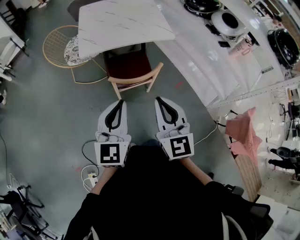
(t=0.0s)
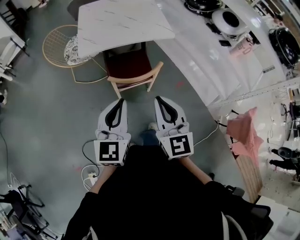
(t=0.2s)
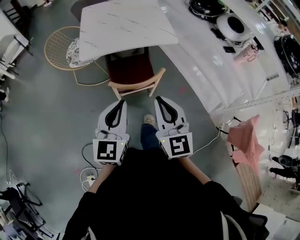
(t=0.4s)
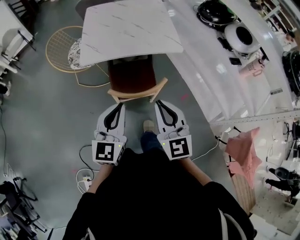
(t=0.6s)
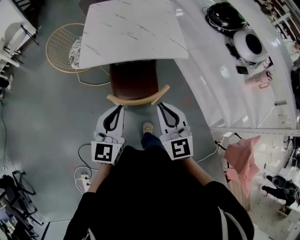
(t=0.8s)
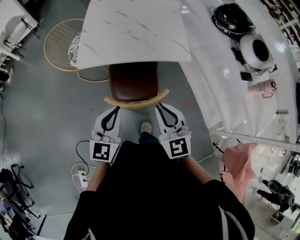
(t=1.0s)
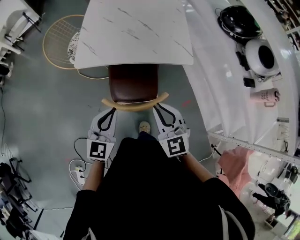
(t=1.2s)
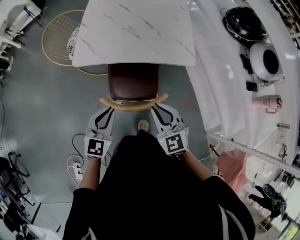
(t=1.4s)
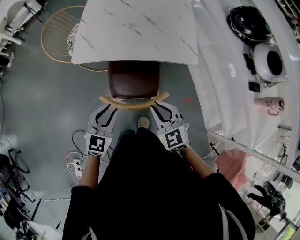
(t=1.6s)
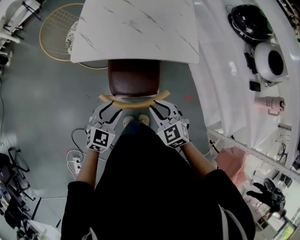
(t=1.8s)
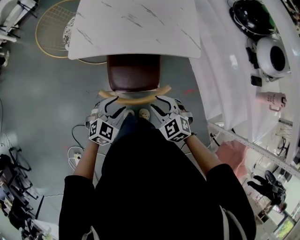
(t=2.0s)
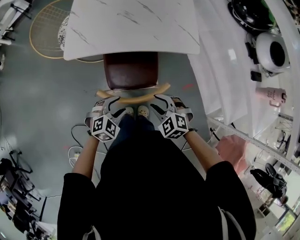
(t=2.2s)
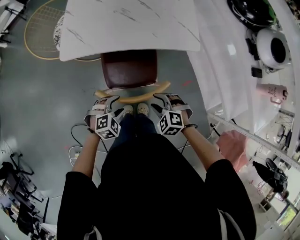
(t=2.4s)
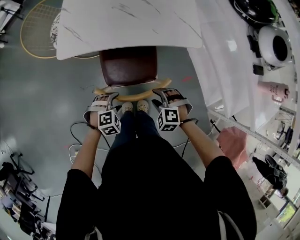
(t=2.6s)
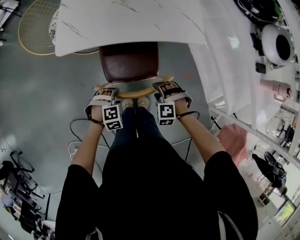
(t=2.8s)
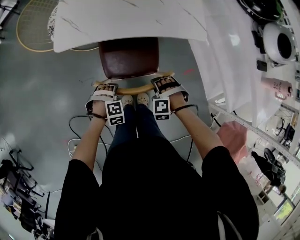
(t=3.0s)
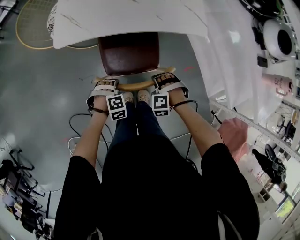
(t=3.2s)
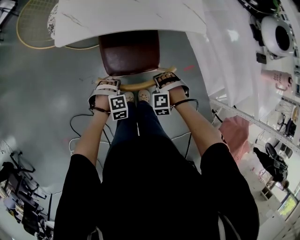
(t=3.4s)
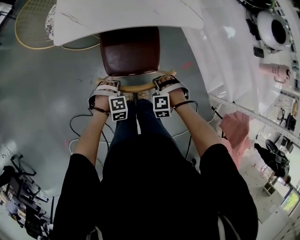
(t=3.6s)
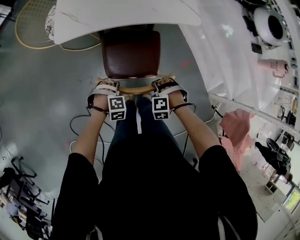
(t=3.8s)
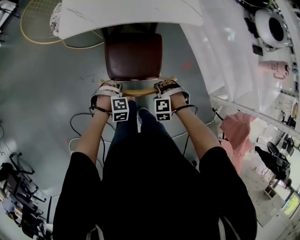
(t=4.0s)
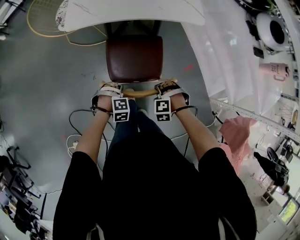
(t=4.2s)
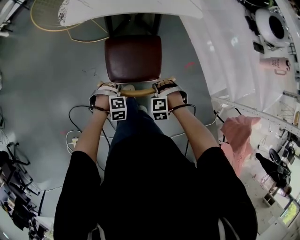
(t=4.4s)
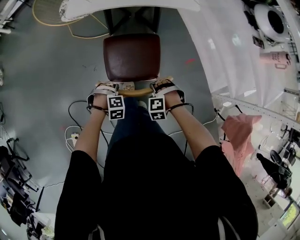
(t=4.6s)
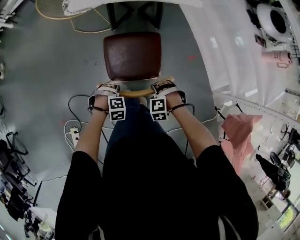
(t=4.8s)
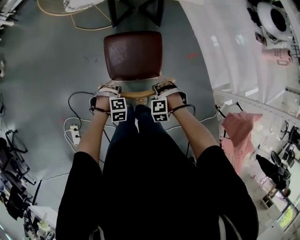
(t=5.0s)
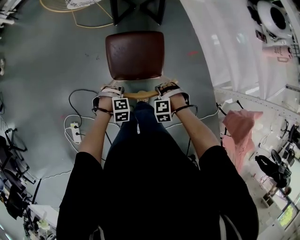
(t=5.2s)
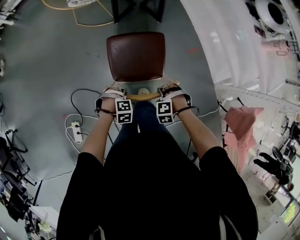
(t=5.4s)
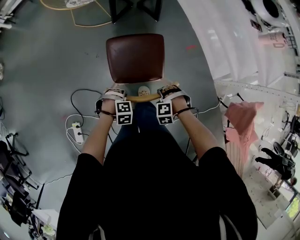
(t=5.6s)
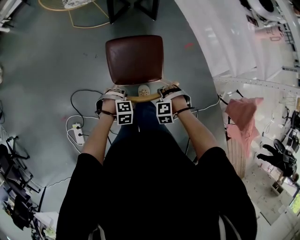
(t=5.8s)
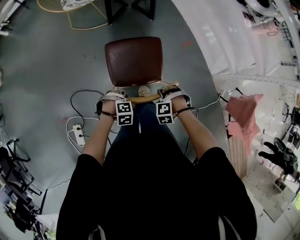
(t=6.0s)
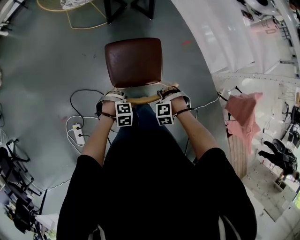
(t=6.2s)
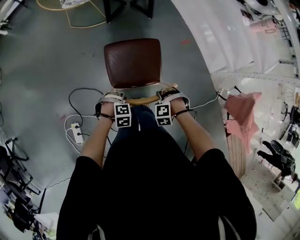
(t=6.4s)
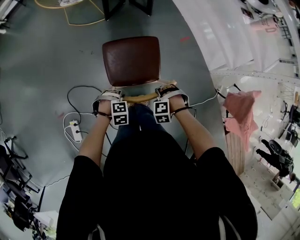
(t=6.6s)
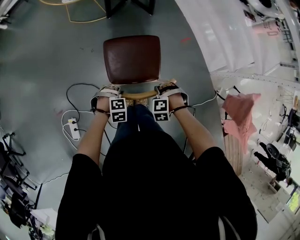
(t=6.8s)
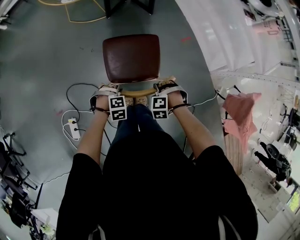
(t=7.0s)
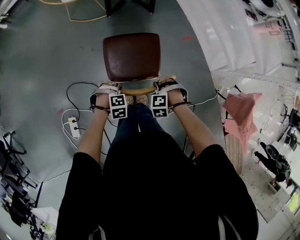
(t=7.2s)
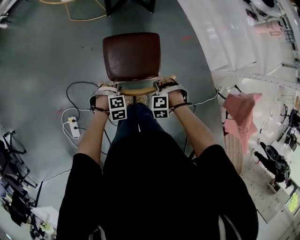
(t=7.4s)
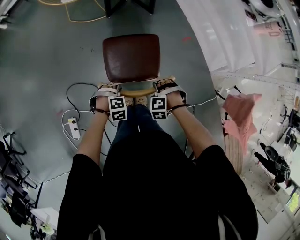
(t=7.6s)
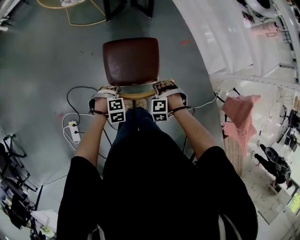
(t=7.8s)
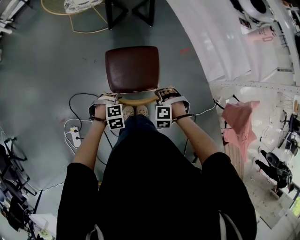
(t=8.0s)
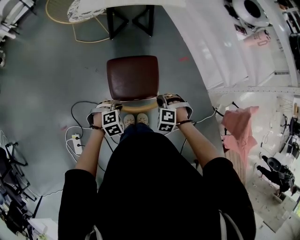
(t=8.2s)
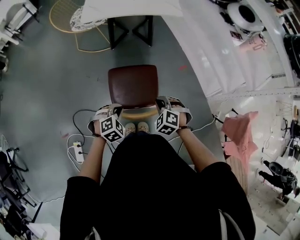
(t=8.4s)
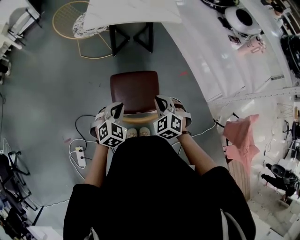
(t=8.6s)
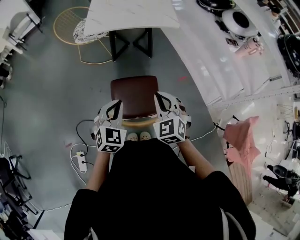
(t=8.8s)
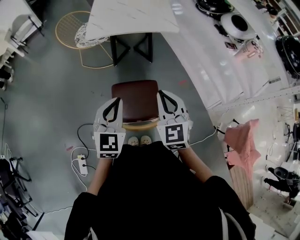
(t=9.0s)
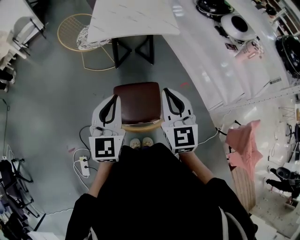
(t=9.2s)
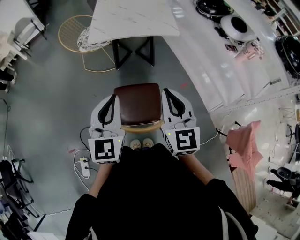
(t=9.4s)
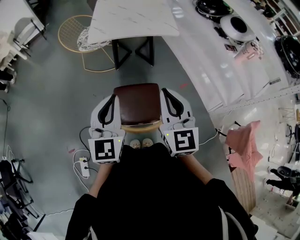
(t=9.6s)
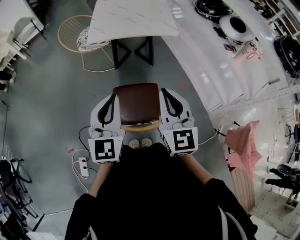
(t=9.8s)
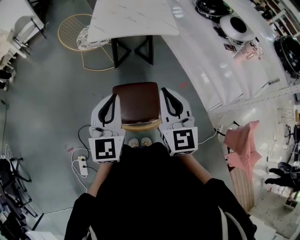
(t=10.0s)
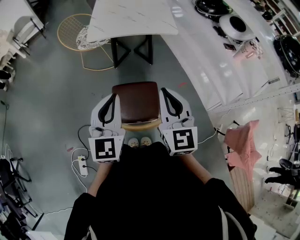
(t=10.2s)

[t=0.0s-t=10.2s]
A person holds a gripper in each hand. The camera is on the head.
t=0.0s to t=1.4s: The two grippers go roughly 30 cm forward and downward. The right gripper rotates about 30 degrees. Meanwhile the left gripper changes its angle by some 20 degrees.
t=1.4s to t=3.0s: Both grippers move downward, about 25 cm. The right gripper tilts its fingers some 50 degrees downward, and opens up; the left gripper points its fingers some 50 degrees further downward, and opens its fingers.
t=3.0s to t=4.4s: The left gripper changes place by approximately 15 cm. The right gripper changes place by approximately 15 cm.
t=4.4s to t=5.8s: The left gripper ends up approximately 25 cm from where it was; the right gripper moves some 25 cm.
t=5.8s to t=7.2s: The grippers stay close to where they were, moving slightly.
t=7.2s to t=8.8s: The grippers both shift upward by some 30 cm. The right gripper angles its fingers upward, by some 50 degrees, and closes up. The left gripper tilts its fingers about 50 degrees upward, and closes up.
t=8.8s to t=10.2s: Both grippers travel together upward, some 15 cm. The left gripper swivels some 30 degrees; the right gripper rotates approximately 30 degrees.

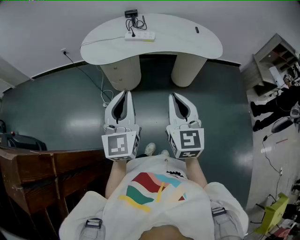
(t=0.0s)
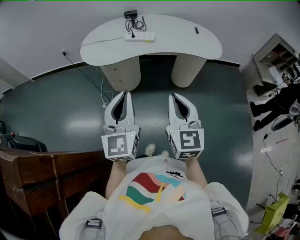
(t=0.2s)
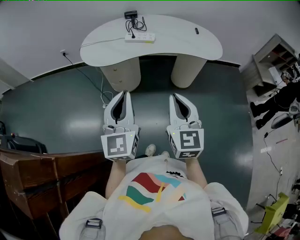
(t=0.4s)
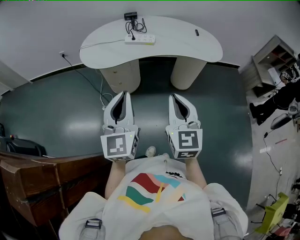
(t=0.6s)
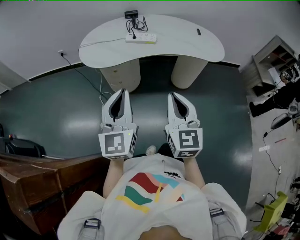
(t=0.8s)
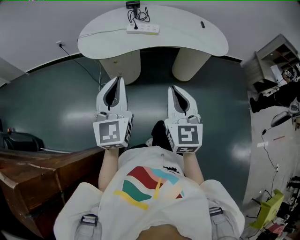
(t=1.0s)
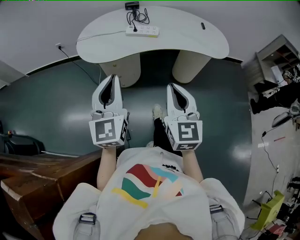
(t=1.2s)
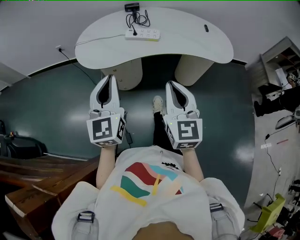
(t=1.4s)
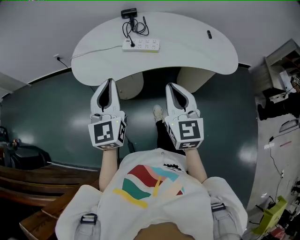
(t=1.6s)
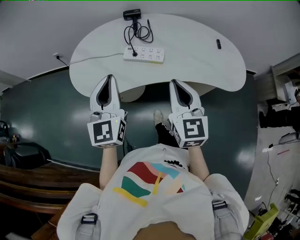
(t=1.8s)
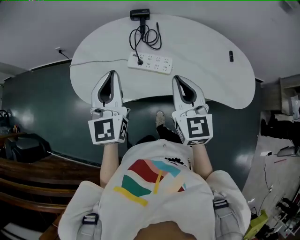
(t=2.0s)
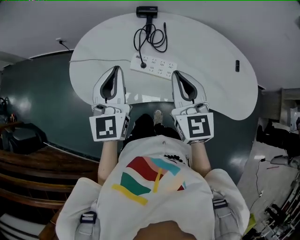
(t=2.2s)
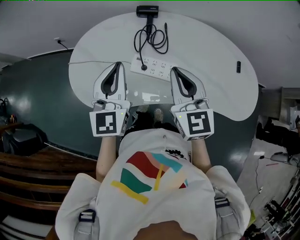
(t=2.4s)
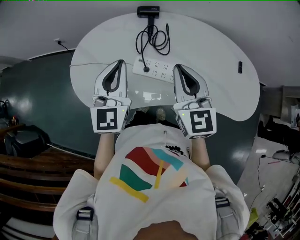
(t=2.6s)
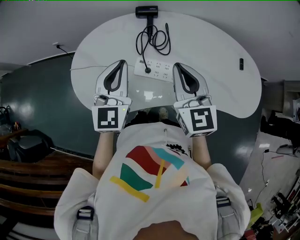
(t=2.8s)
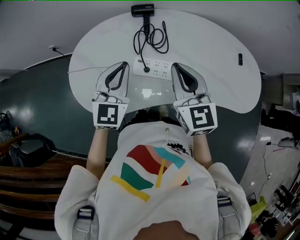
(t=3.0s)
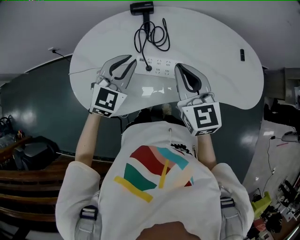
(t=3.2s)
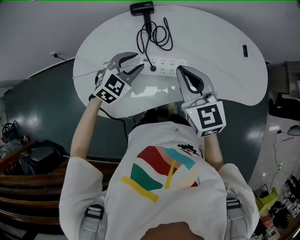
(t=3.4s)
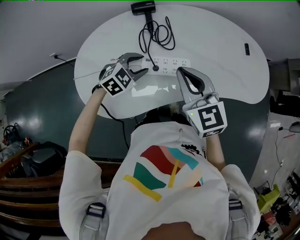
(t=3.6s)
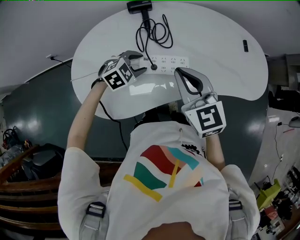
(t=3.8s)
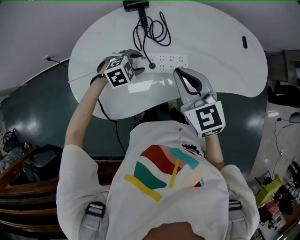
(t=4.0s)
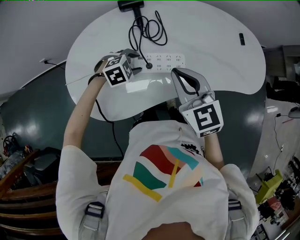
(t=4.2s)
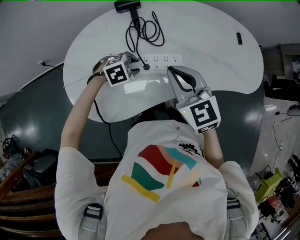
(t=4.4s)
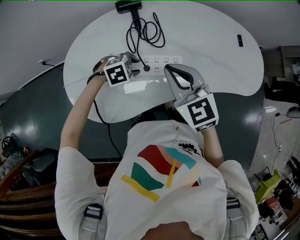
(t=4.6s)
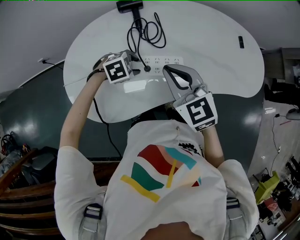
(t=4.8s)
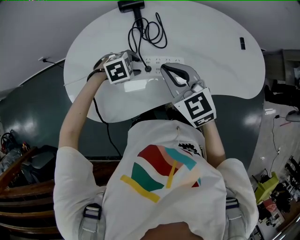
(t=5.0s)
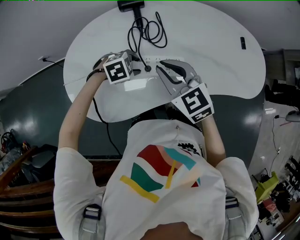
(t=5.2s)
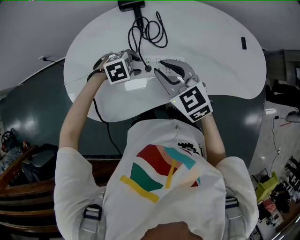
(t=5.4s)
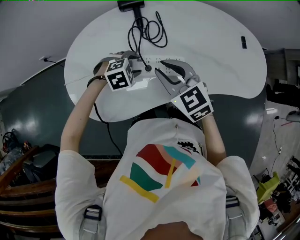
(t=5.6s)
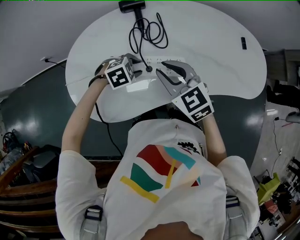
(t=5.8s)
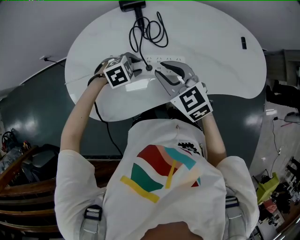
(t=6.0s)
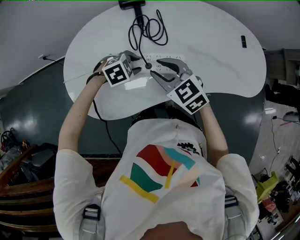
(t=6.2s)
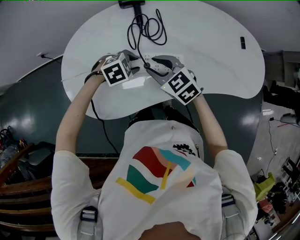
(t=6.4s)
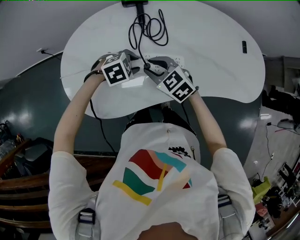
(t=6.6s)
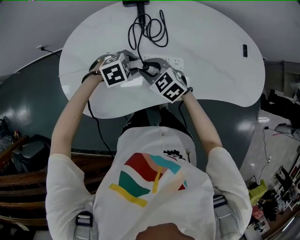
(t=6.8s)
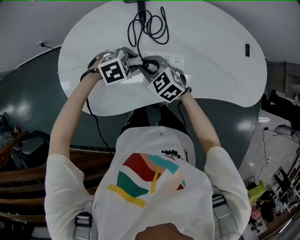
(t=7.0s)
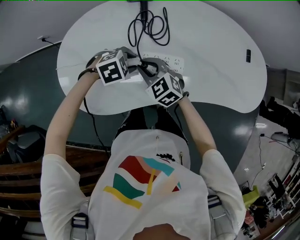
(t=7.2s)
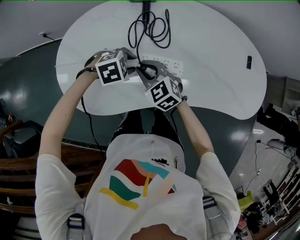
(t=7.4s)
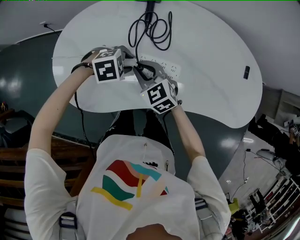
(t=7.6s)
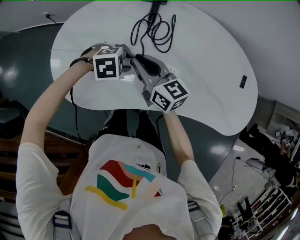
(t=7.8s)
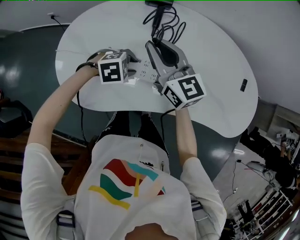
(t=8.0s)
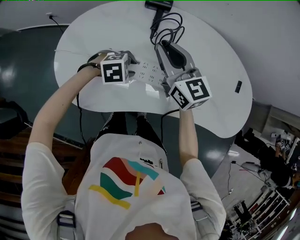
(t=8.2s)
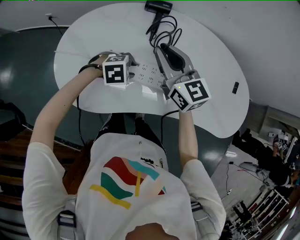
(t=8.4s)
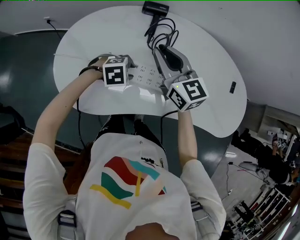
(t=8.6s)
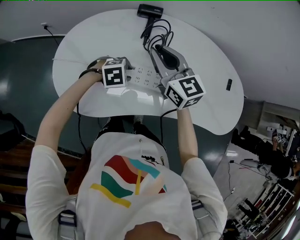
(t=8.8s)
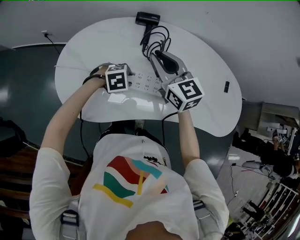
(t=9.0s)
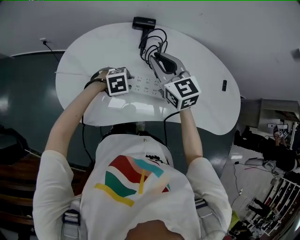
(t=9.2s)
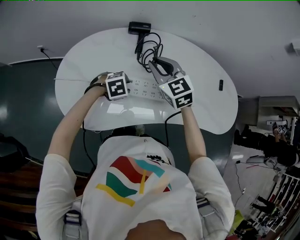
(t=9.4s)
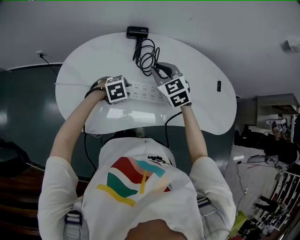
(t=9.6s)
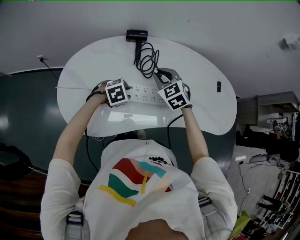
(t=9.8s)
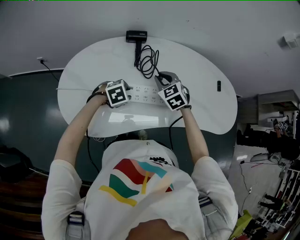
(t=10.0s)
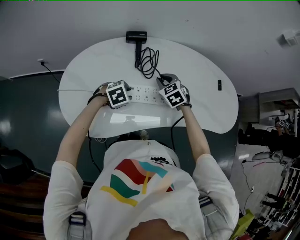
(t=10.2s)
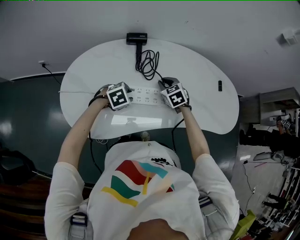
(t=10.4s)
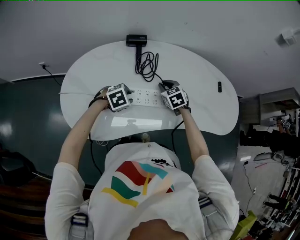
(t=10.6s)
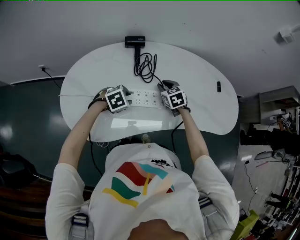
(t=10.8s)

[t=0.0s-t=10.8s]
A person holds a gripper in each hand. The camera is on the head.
t=0.0s to t=1.6s: Both grippers move forward, some 25 cm.
t=1.6s to t=3.0s: Both grippers travel together forward, roughly 30 cm. The left gripper swivels roughly 20 degrees.
t=3.0s to t=4.6s: The left gripper travels downward by approximately 20 cm, tilts its fingers approximately 50 degrees downward, and opens its fingers, while the right gripper moves about 5 cm.
t=4.6s to t=6.2s: The right gripper is displaced downward by roughly 10 cm, and opens.
t=6.2s to t=7.8s: The right gripper moves some 10 cm downward and comes back, changes its angle by approximately 20 degrees, and closes up.
t=7.8s to t=9.2s: The right gripper moves upward, about 10 cm.
t=9.2s to t=10.8s: The right gripper goes roughly 20 cm downward and to the right, and swivels some 30 degrees.

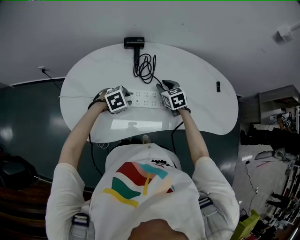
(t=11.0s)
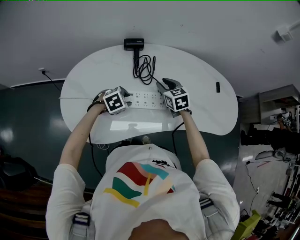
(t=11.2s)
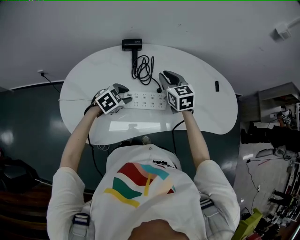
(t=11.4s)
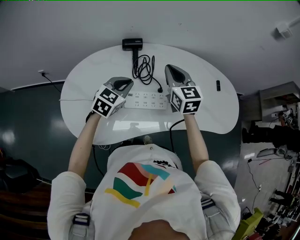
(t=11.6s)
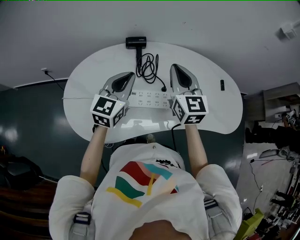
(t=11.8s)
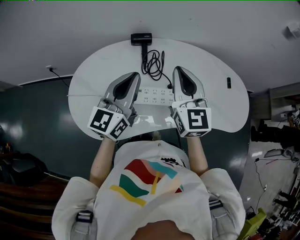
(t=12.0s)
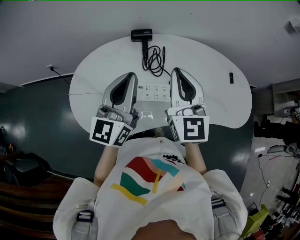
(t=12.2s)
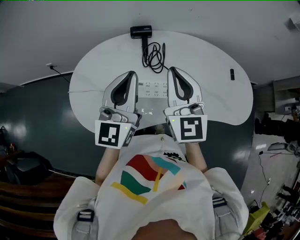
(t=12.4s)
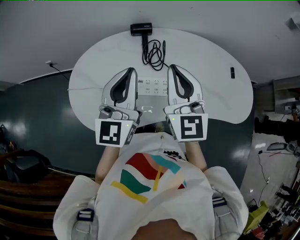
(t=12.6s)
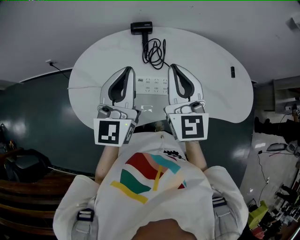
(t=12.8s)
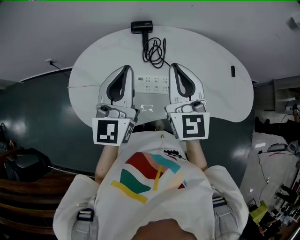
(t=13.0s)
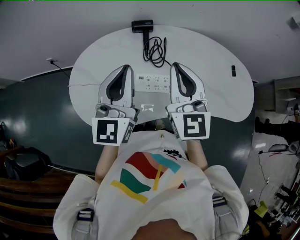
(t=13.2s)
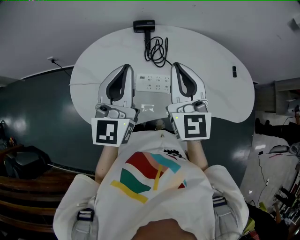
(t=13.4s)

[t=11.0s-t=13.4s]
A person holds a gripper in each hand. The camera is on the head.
t=11.0s to t=12.2s: The two grippers go about 30 cm upward. The left gripper tips its fingers upward by approximately 70 degrees, and closes up. Meanwhile the right gripper points its fingers about 40 degrees further upward, and closes its fingers.
t=12.2s to t=13.4s: The grippers make only small movements.
